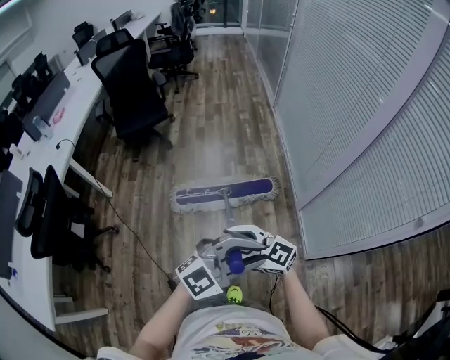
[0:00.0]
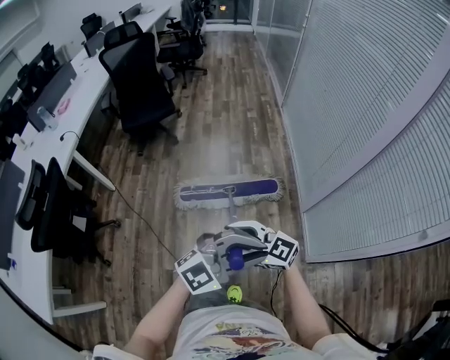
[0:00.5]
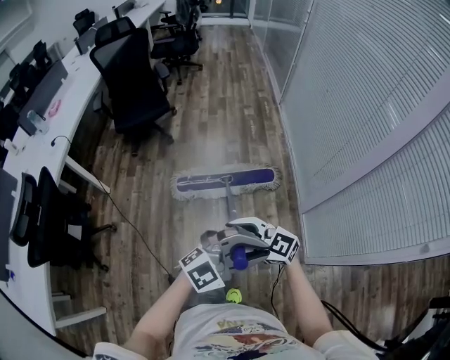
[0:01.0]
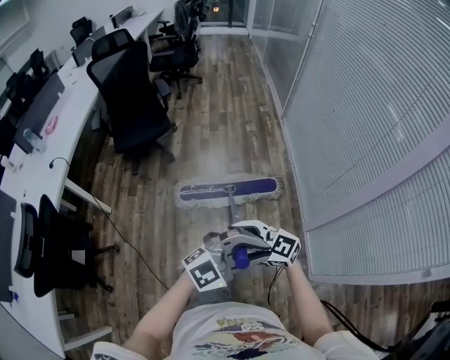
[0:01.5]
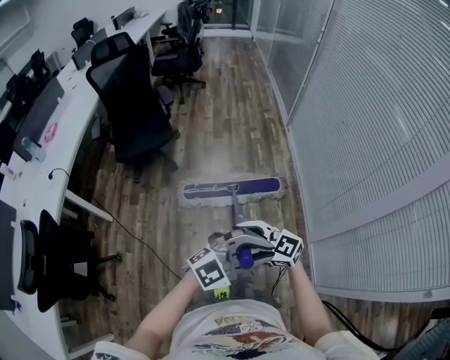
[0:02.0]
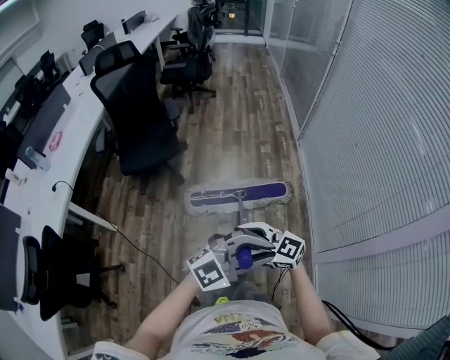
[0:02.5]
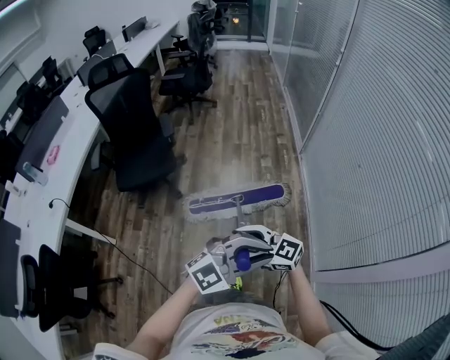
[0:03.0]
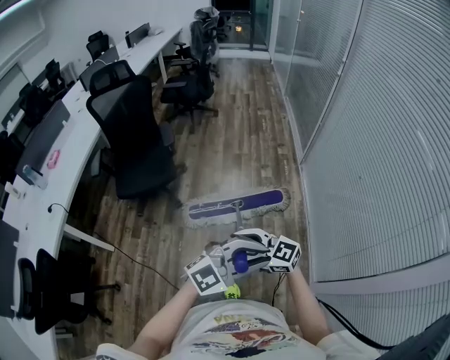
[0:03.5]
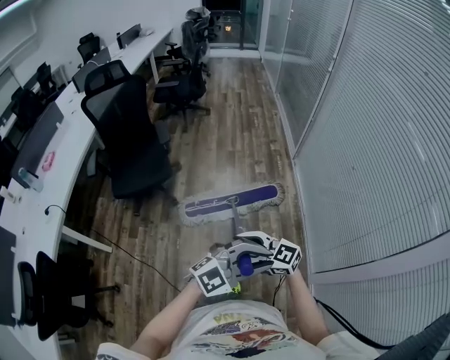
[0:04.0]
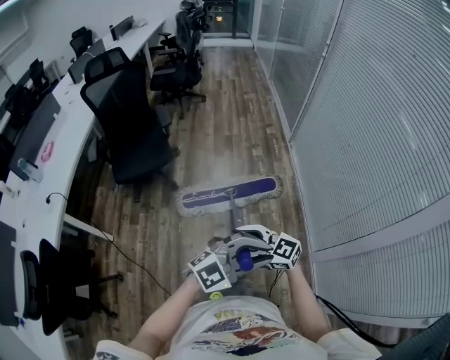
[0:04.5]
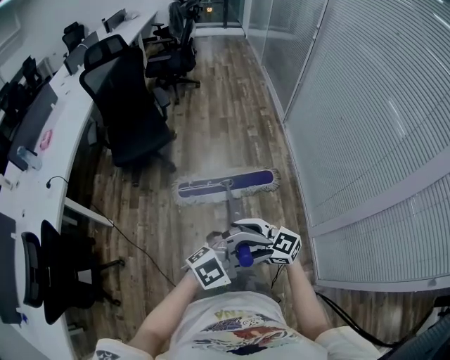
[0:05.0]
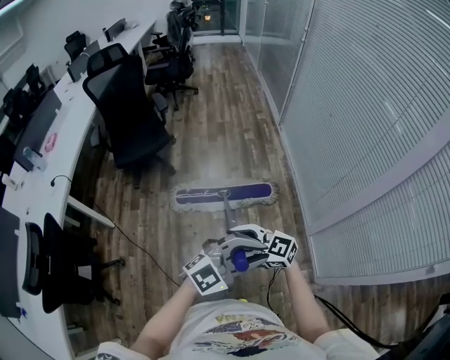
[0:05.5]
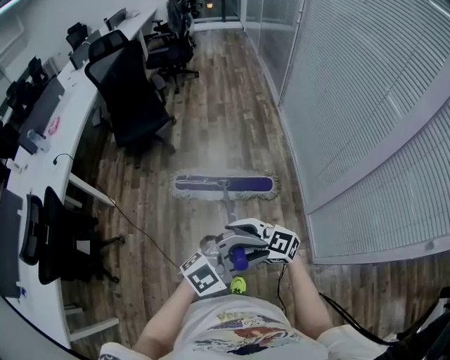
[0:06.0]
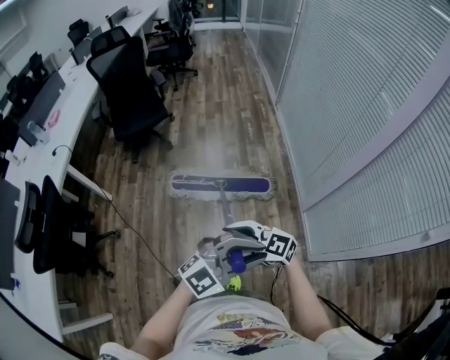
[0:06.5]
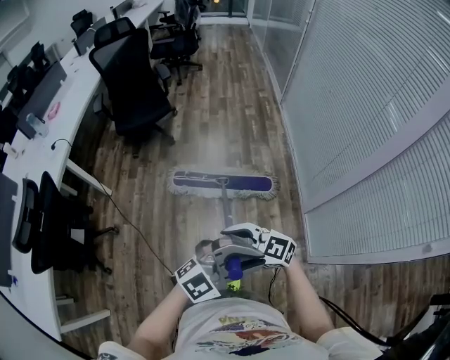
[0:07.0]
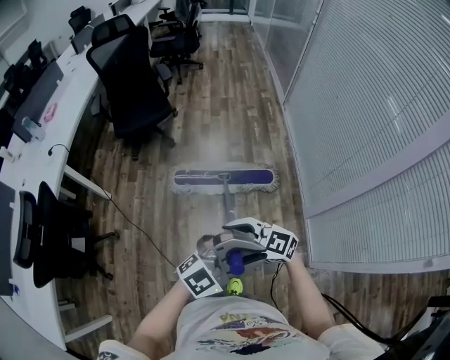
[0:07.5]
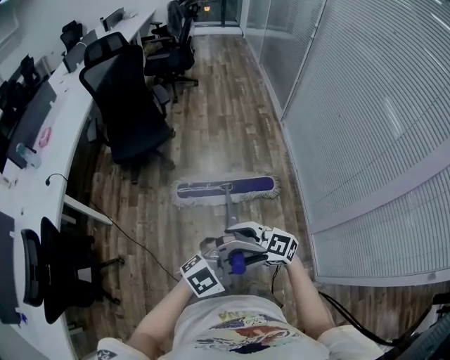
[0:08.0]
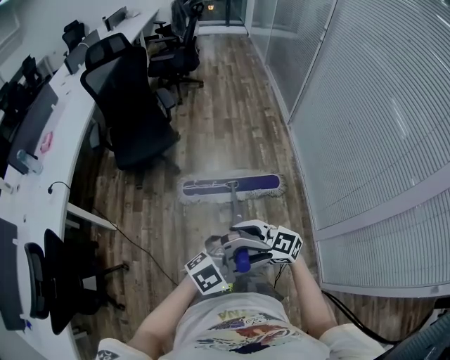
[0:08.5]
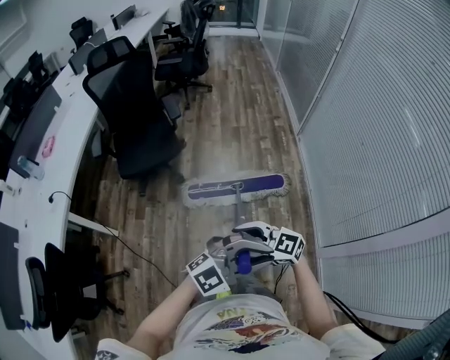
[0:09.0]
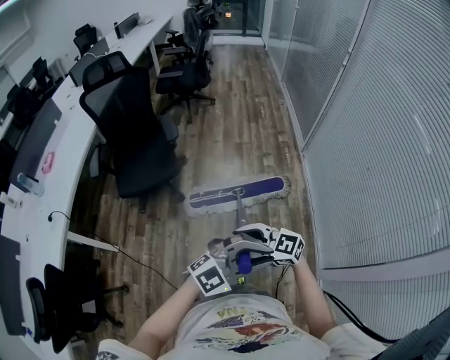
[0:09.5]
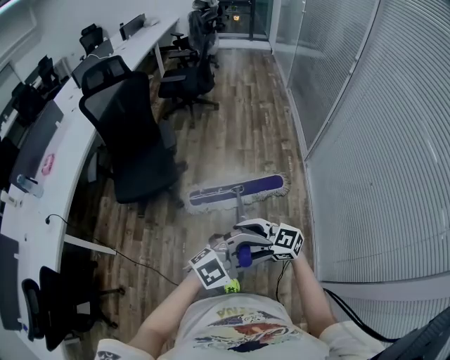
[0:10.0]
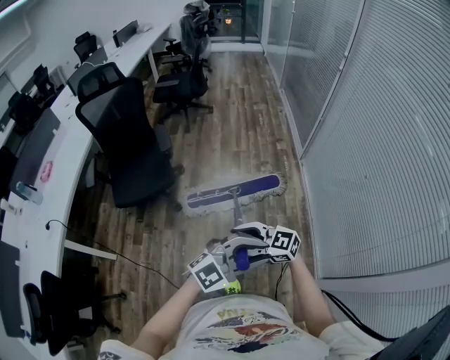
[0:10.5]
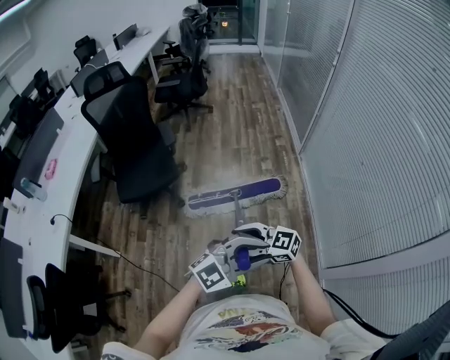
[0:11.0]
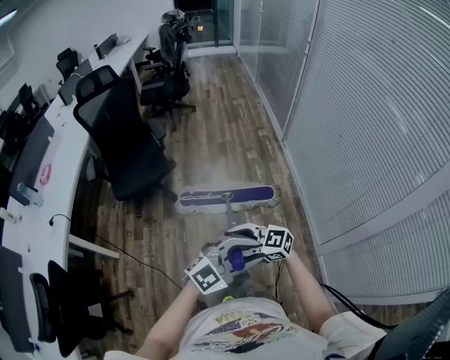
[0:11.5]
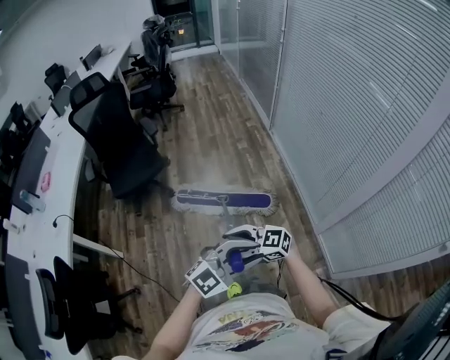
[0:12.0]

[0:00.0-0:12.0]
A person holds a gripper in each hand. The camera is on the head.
0:00.0 to 0:02.0: The left gripper changes place by approximately 35 cm. Meanwhile the right gripper ends up some 35 cm from where it was.
0:02.0 to 0:04.0: The right gripper moves some 25 cm, while the left gripper shifts by about 25 cm.
0:04.0 to 0:06.0: The two grippers travel together, roughly 50 cm.
0:06.0 to 0:08.0: The right gripper changes place by approximately 20 cm. Meanwhile the left gripper ends up about 20 cm from where it was.
0:08.0 to 0:10.0: The pair of grippers is taken some 50 cm.
0:10.0 to 0:12.0: Both grippers are carried about 40 cm.

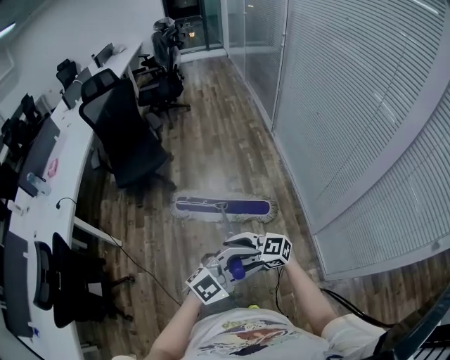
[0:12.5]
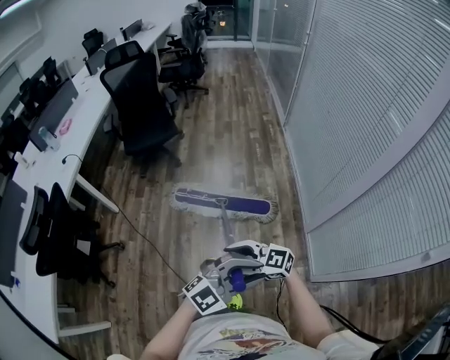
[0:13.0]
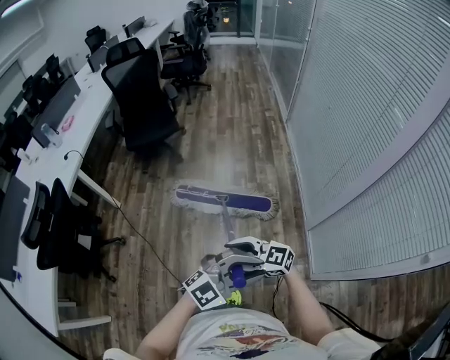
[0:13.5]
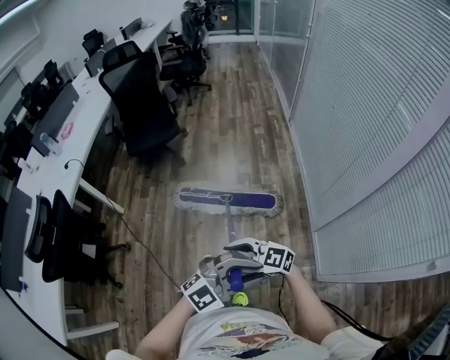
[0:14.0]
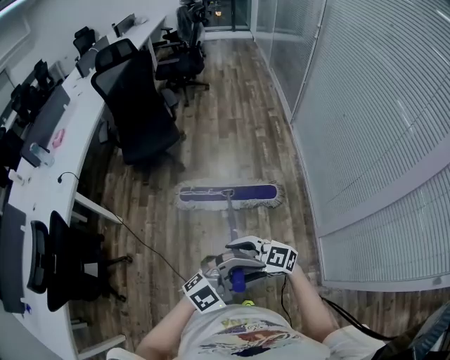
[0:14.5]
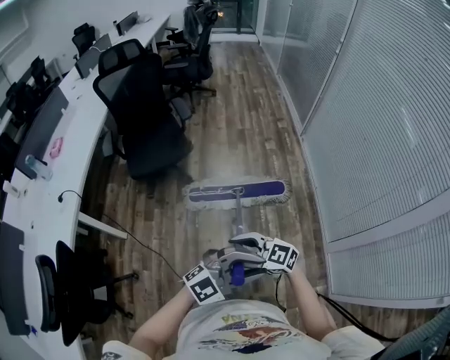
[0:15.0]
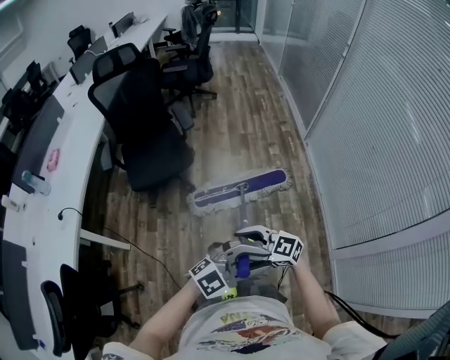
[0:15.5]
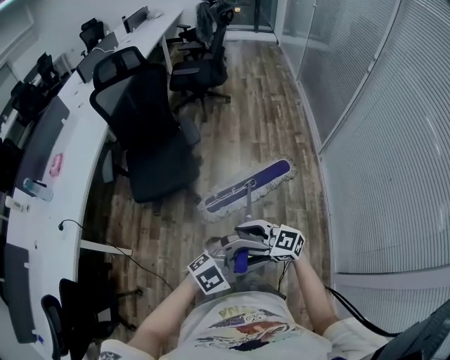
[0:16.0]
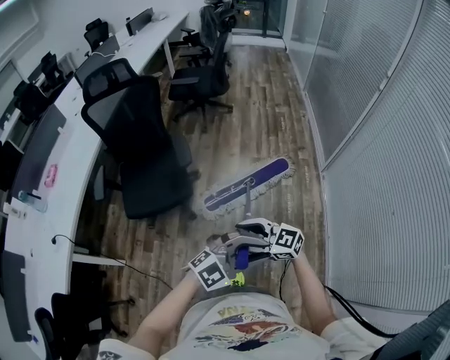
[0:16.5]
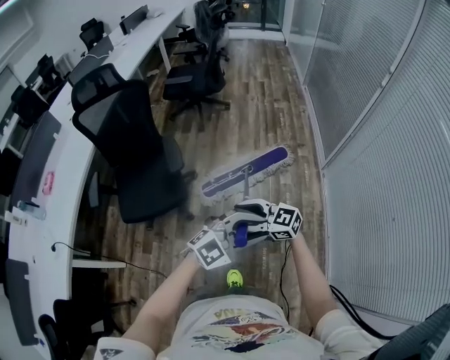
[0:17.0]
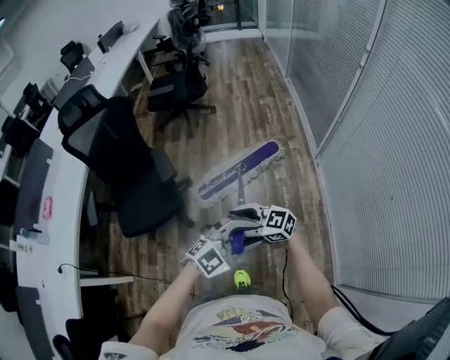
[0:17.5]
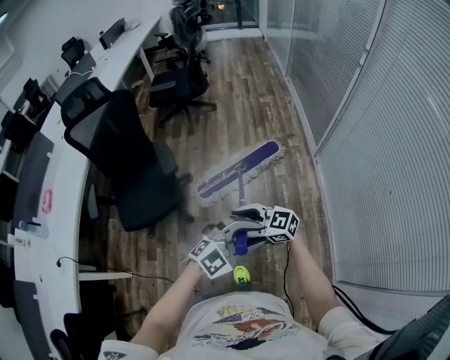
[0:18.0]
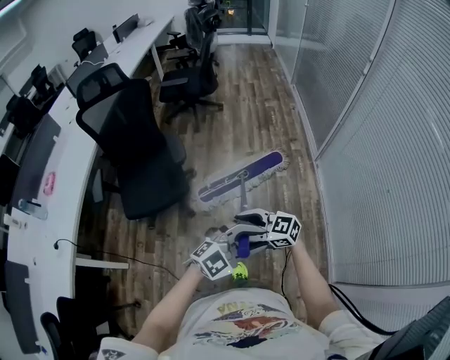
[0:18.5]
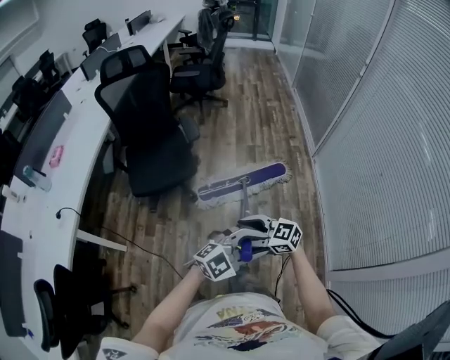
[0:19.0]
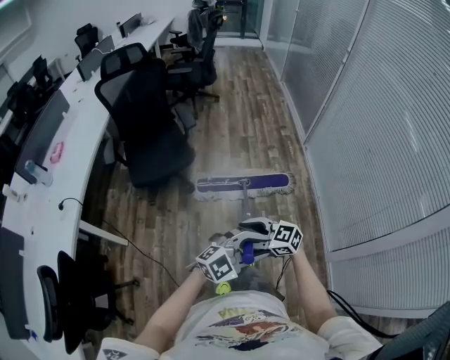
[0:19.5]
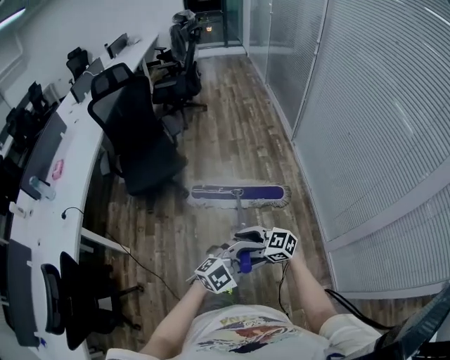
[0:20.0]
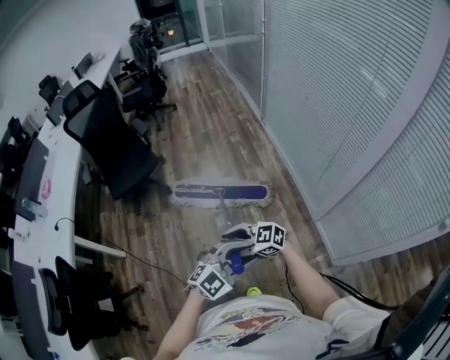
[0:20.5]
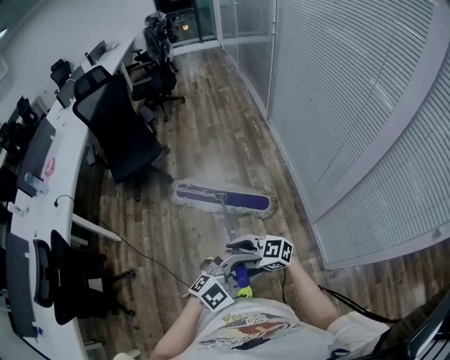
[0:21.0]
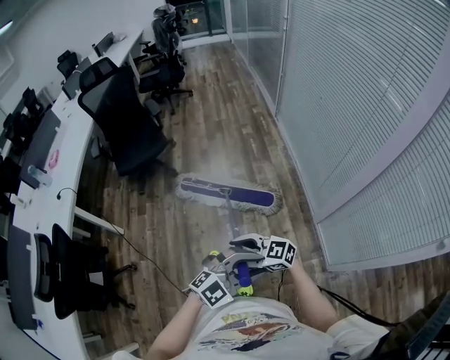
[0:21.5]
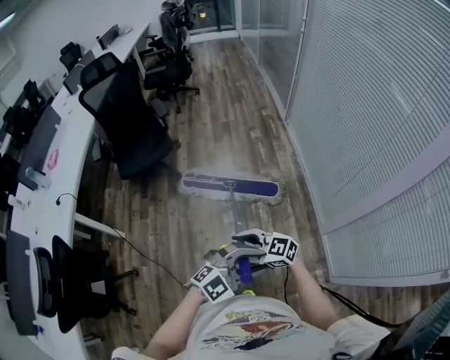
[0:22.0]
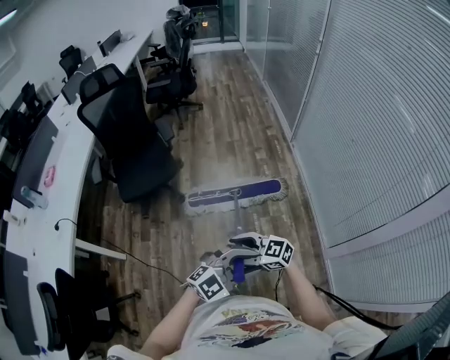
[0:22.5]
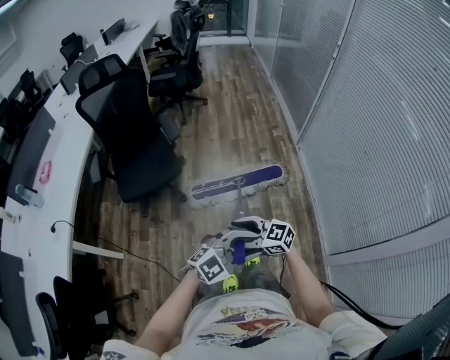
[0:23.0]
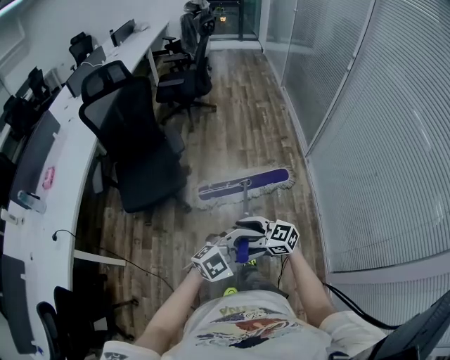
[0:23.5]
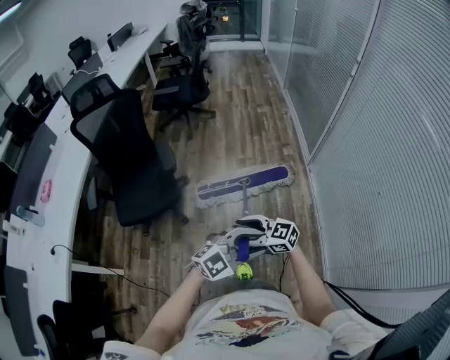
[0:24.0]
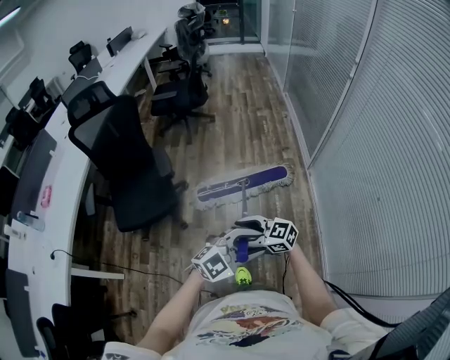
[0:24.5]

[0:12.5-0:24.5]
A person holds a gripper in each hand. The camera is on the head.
0:14.5 to 0:16.5: The two grippers travel together, some 70 cm.
0:18.5 to 0:20.5: The pair of grippers is taken roughly 60 cm.
0:20.5 to 0:22.5: The right gripper moves roughly 25 cm; the left gripper ends up approximately 25 cm from where it was.
0:22.5 to 0:24.5: Both grippers are carried some 40 cm.

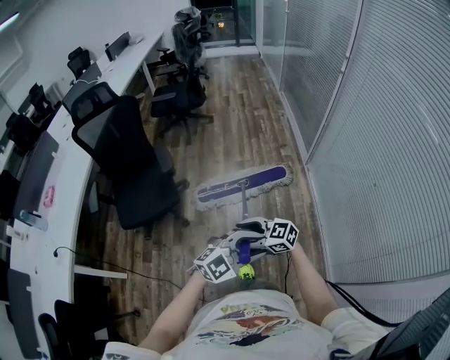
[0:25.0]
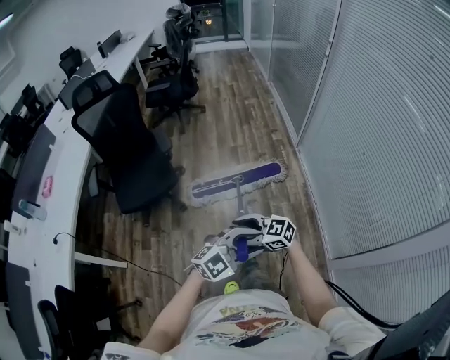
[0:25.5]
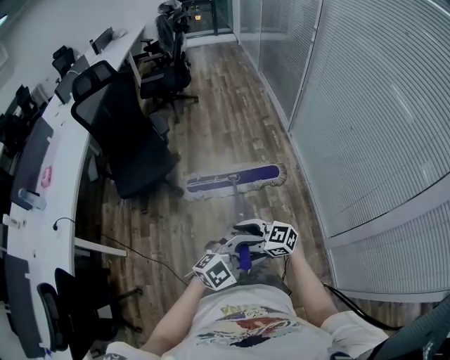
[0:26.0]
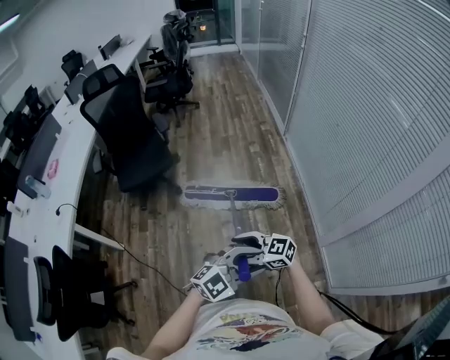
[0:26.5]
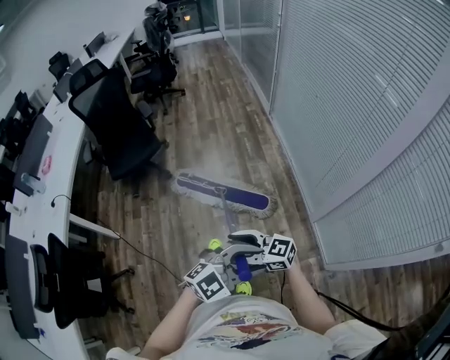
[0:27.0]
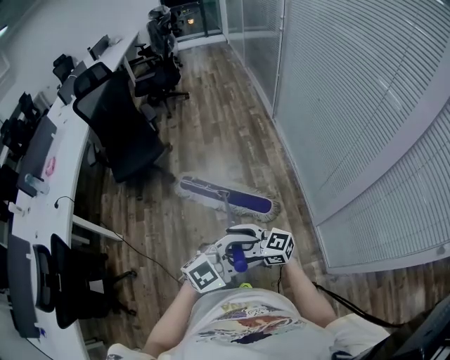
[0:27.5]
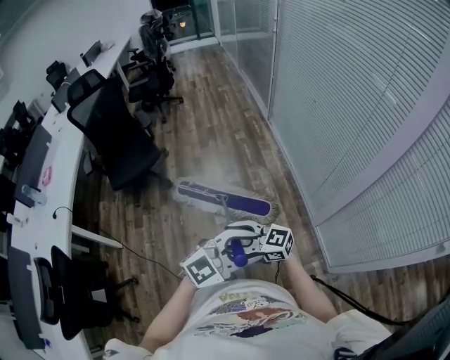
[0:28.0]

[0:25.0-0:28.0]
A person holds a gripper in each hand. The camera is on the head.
0:25.0 to 0:26.5: Both grippers are carried approximately 50 cm.
0:26.5 to 0:28.0: The left gripper ends up some 10 cm from where it was.
